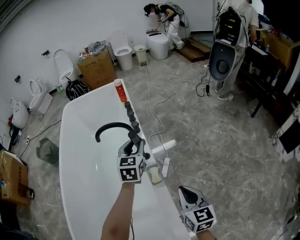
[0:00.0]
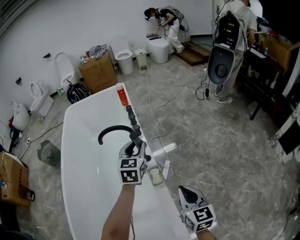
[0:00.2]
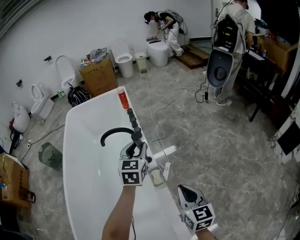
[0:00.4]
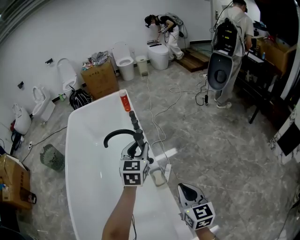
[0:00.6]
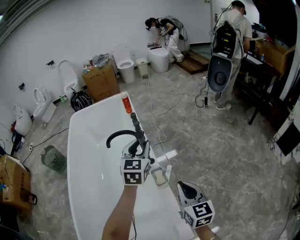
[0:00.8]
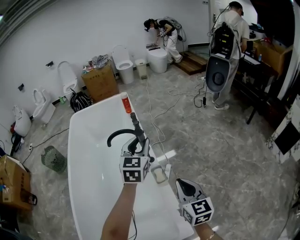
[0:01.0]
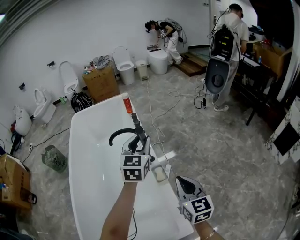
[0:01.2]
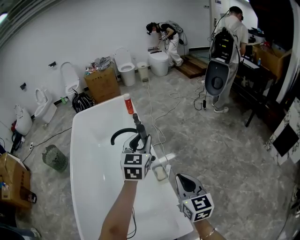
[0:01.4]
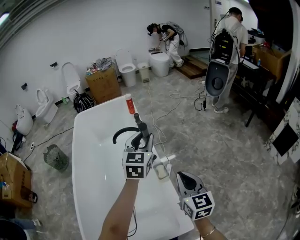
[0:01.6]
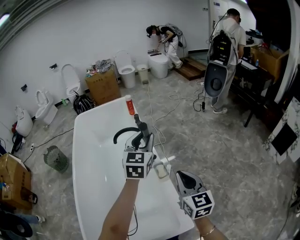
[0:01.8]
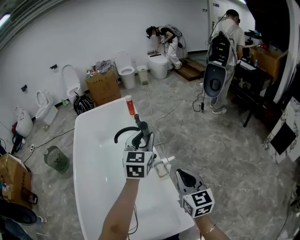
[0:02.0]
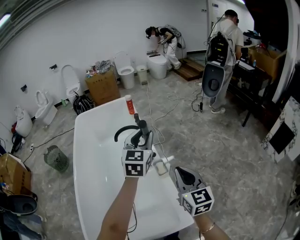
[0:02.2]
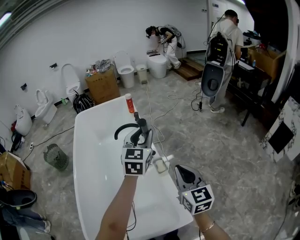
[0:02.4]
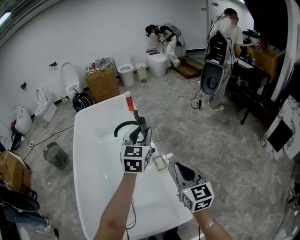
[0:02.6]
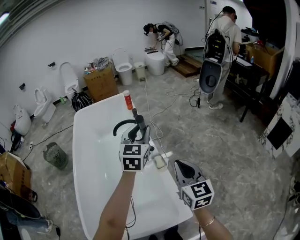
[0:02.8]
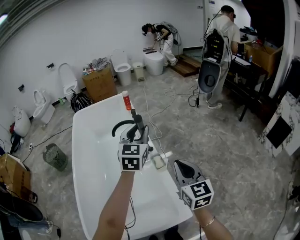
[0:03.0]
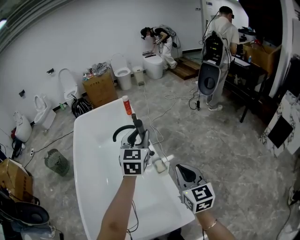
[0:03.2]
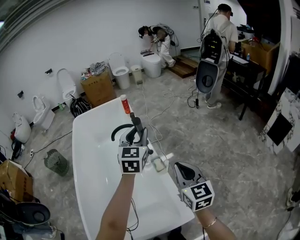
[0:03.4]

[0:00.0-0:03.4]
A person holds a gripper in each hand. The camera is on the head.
0.0 to 1.6 s: The grippers both shift upward and backward by some 25 cm.
1.6 to 3.4 s: The two grippers go some 10 cm backward and upward.

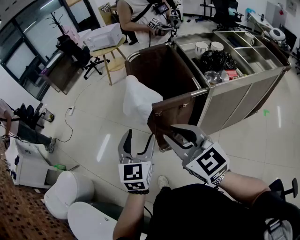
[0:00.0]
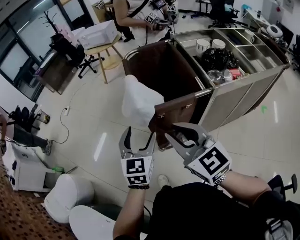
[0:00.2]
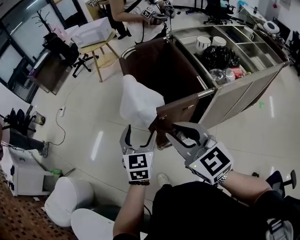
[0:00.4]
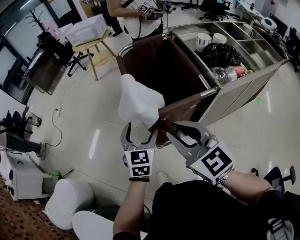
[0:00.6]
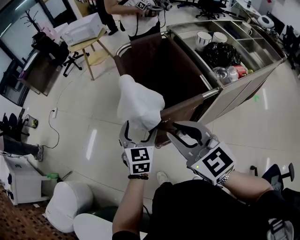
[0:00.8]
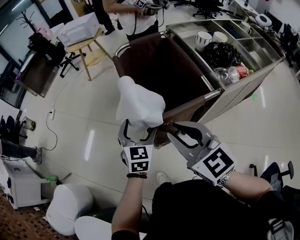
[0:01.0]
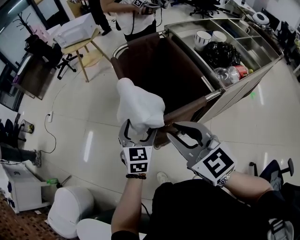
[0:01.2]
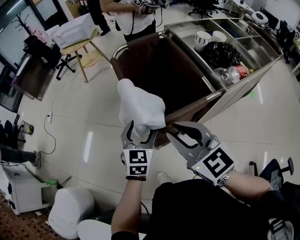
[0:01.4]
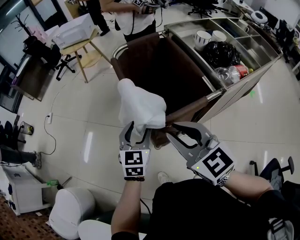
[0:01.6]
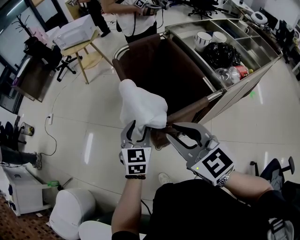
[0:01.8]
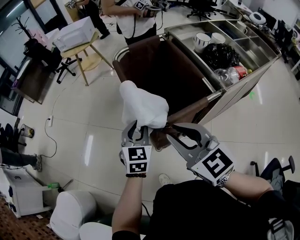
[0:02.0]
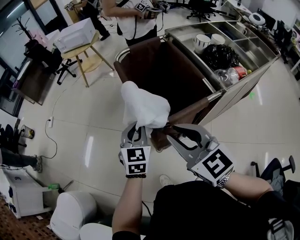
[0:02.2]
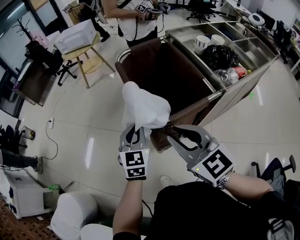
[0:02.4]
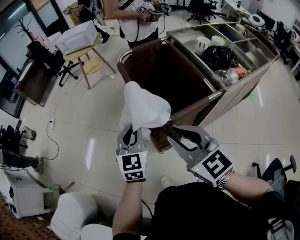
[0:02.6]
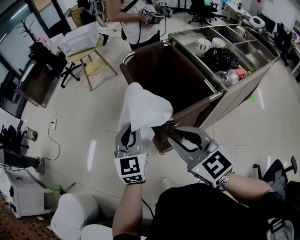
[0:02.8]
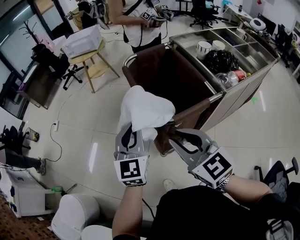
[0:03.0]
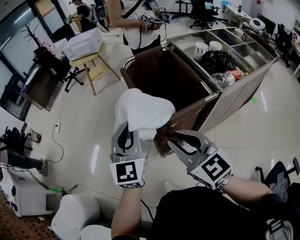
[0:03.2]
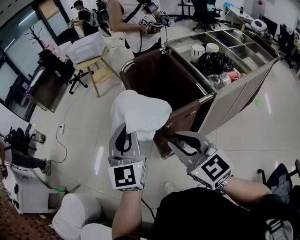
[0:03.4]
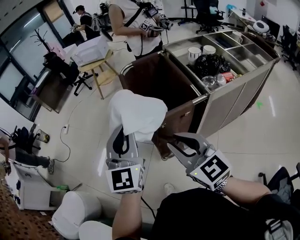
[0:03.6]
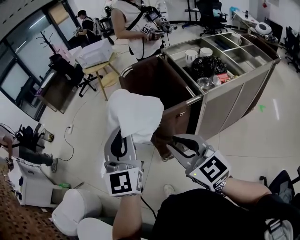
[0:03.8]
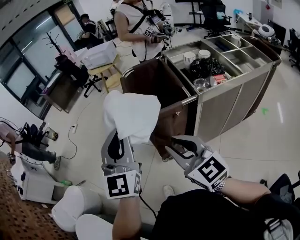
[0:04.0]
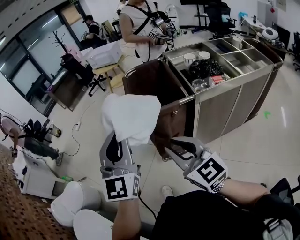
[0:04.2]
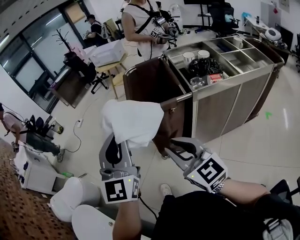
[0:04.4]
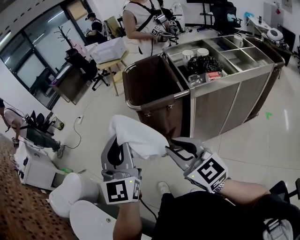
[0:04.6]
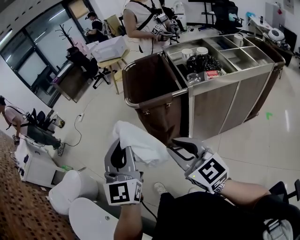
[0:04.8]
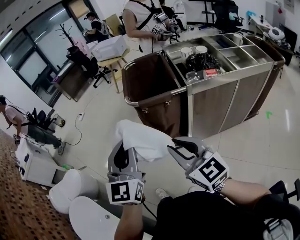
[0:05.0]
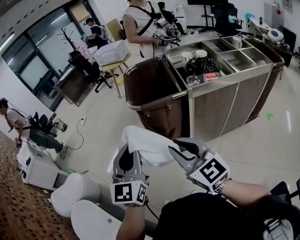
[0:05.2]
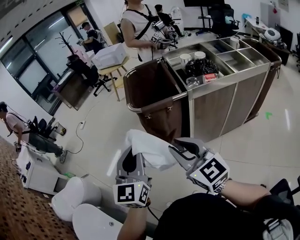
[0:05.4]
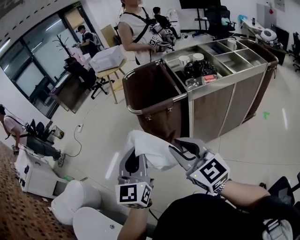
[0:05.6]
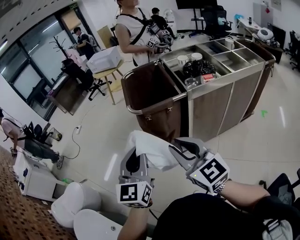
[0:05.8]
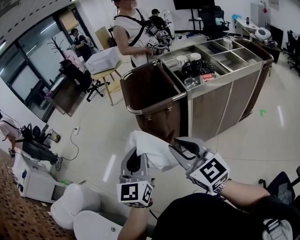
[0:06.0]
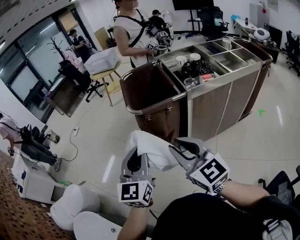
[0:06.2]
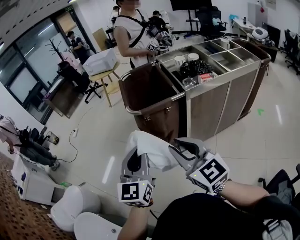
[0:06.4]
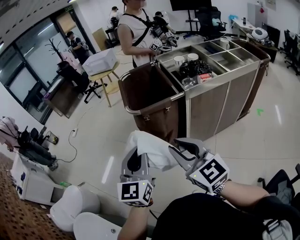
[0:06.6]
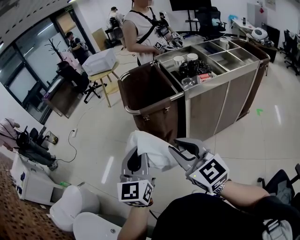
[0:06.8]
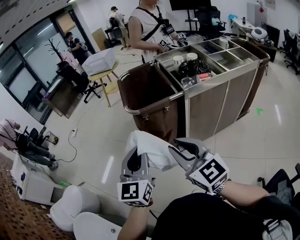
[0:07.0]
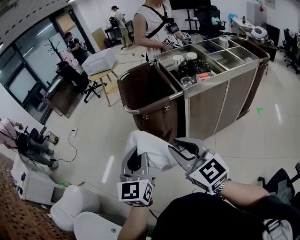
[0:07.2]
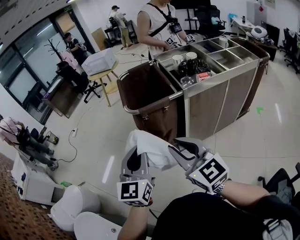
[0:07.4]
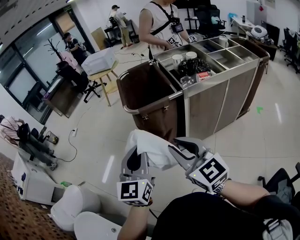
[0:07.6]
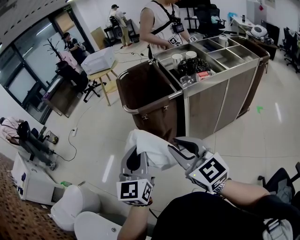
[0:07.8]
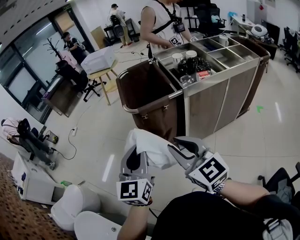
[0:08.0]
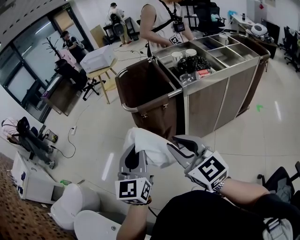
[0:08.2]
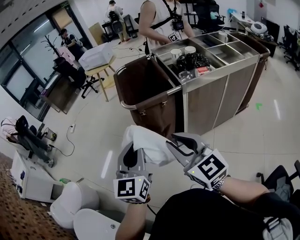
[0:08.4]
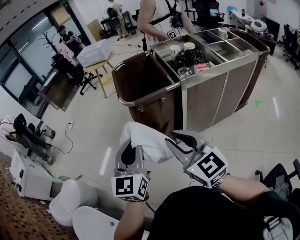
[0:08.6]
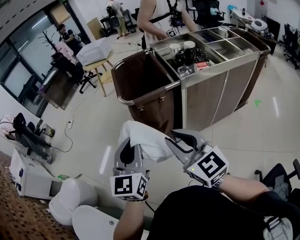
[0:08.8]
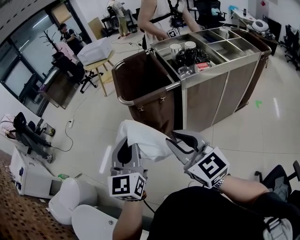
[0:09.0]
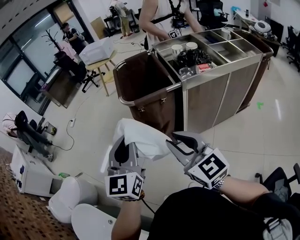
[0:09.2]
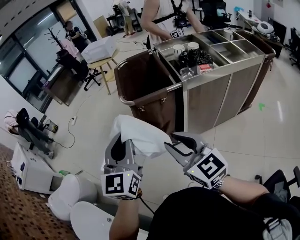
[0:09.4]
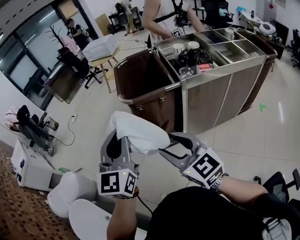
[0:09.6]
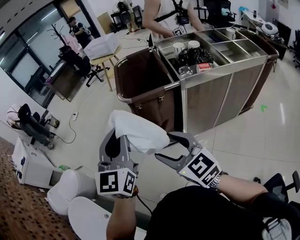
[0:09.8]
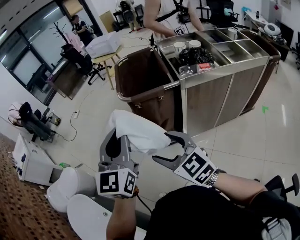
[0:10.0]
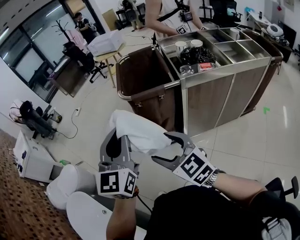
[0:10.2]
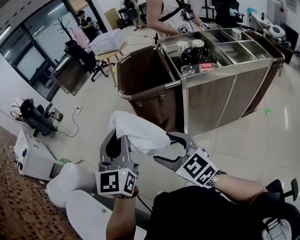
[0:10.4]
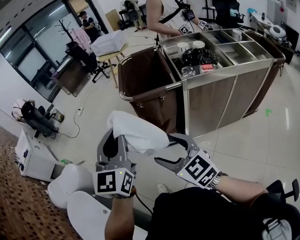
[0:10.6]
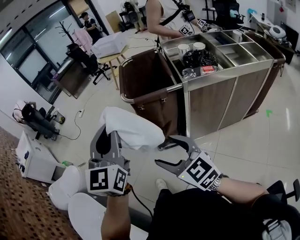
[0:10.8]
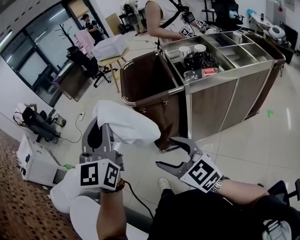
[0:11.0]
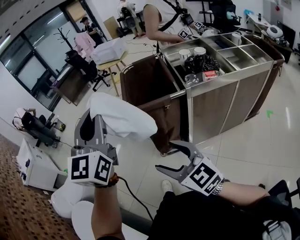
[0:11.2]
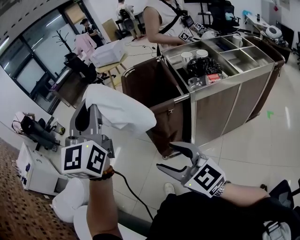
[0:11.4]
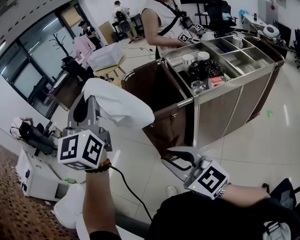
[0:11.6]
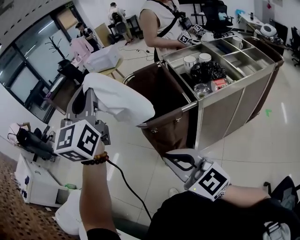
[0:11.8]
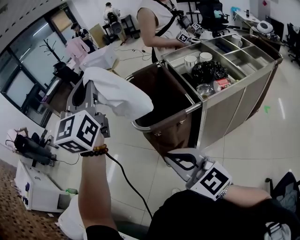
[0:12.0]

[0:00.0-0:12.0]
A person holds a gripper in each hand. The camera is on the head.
0.0 to 1.6 s: The two grippers go approximately 20 cm forward and to the left.
1.6 to 3.0 s: The right gripper ends up approximately 5 cm from where it was, while the left gripper shifts some 15 cm upward, and closes up.
3.0 to 4.4 s: Both grippers move backward and to the right, about 30 cm. The left gripper changes its angle by about 20 degrees.
4.4 to 6.0 s: The left gripper heads downward, covering some 10 cm.
6.0 to 7.6 s: Both grippers stay about where they are.
7.6 to 9.0 s: The grippers stay close to where they were, moving slightly.
9.0 to 10.4 s: The right gripper goes roughly 10 cm downward, turns by roughly 20 degrees, and opens up.
10.4 to 12.0 s: The right gripper travels upward, forward and to the left by about 15 cm, rotates about 20 degrees, and closes up. Meanwhile the left gripper is displaced forward and upward by roughly 30 cm.

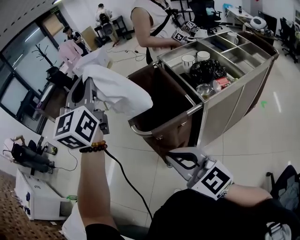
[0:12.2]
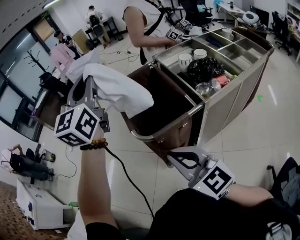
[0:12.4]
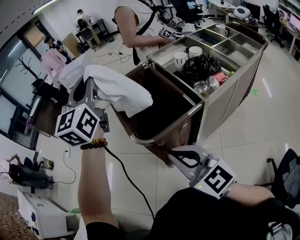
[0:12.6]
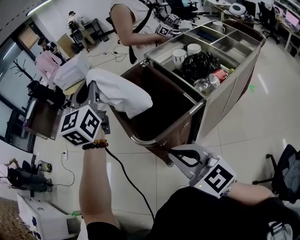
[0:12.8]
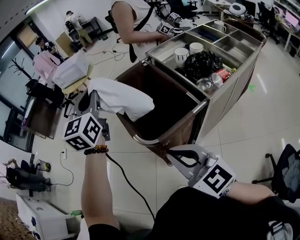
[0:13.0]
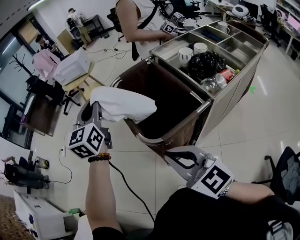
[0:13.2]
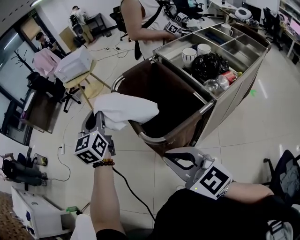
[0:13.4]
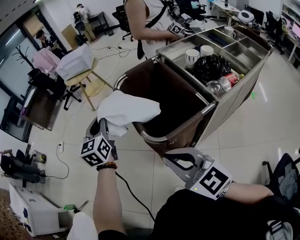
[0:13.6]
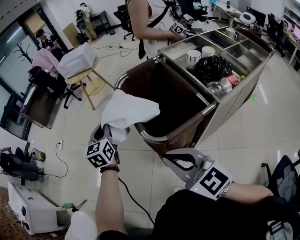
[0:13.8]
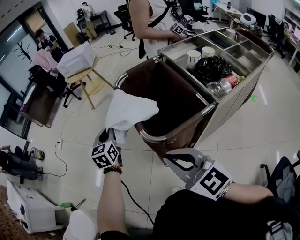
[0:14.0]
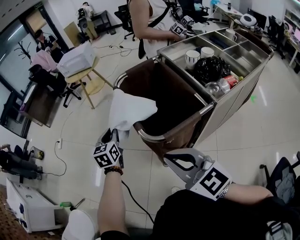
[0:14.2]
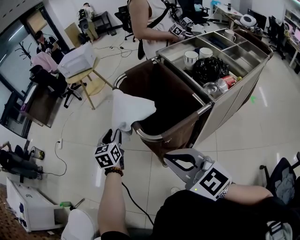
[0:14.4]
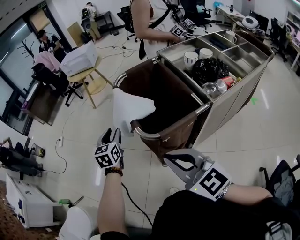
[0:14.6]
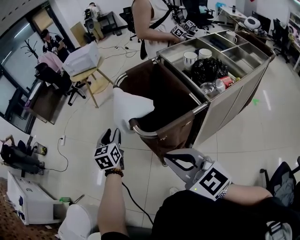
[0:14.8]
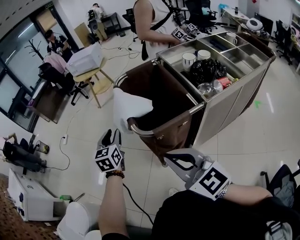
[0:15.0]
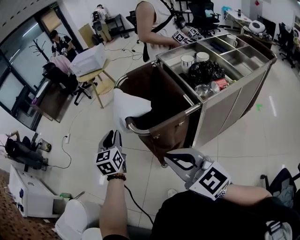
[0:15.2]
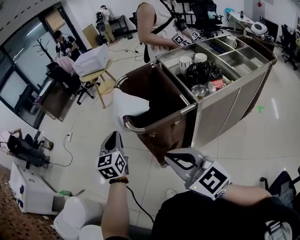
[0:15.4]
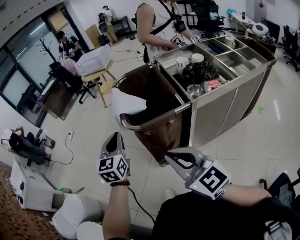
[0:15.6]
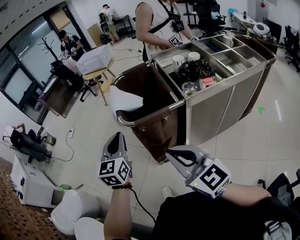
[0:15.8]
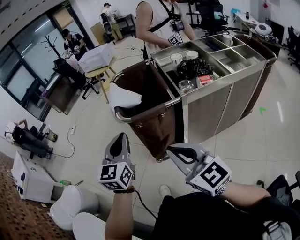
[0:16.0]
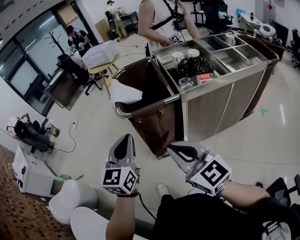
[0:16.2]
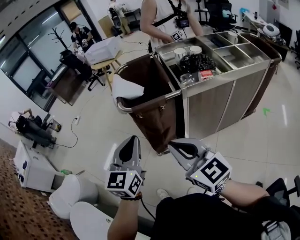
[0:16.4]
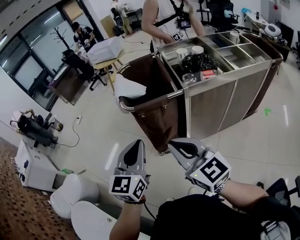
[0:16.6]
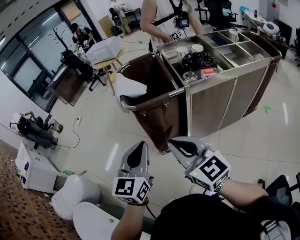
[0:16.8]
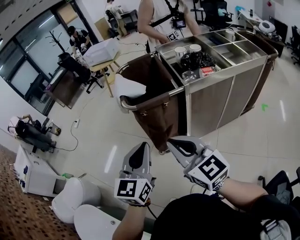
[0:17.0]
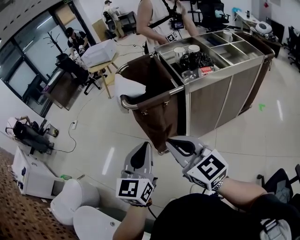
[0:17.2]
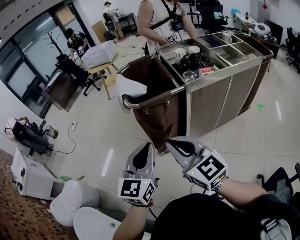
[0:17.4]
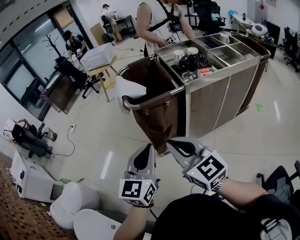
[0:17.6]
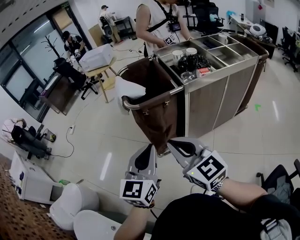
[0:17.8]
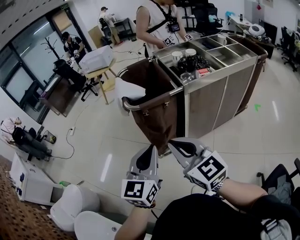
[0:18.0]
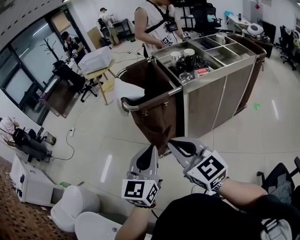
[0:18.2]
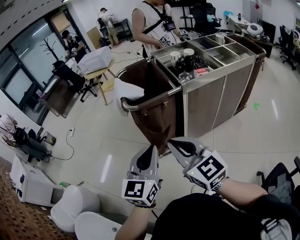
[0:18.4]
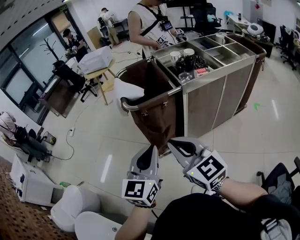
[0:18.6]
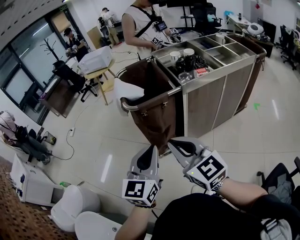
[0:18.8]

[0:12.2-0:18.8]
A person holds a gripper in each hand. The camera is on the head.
12.2 to 13.8 s: The left gripper heads downward, forward and to the left, covering approximately 40 cm, and changes its angle by about 30 degrees, while the right gripper heads to the left and forward, covering about 15 cm.
13.8 to 15.4 s: Both grippers travel together backward and to the right, approximately 20 cm.
15.4 to 17.2 s: The left gripper is displaced backward and to the right by approximately 30 cm. The right gripper shifts roughly 10 cm backward.
17.2 to 18.8 s: The grippers make only small movements.

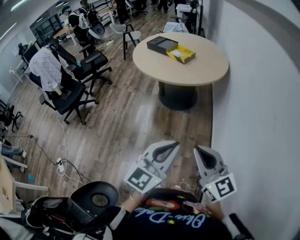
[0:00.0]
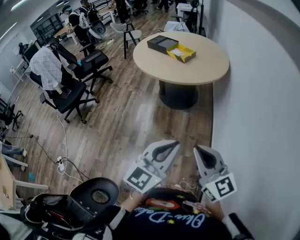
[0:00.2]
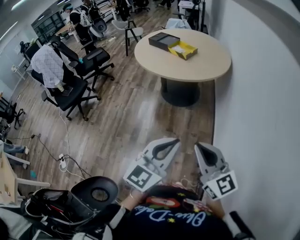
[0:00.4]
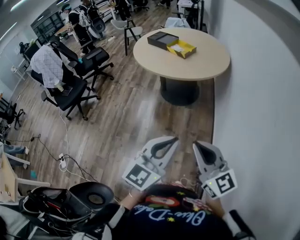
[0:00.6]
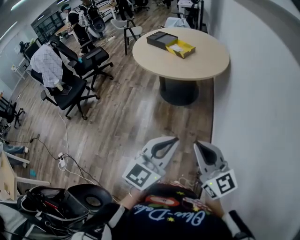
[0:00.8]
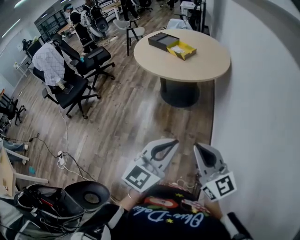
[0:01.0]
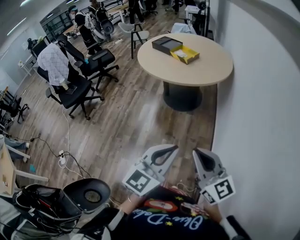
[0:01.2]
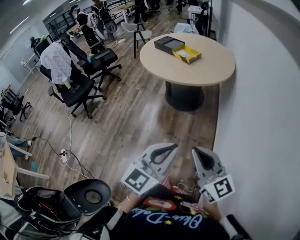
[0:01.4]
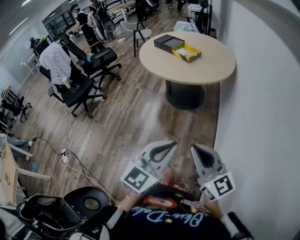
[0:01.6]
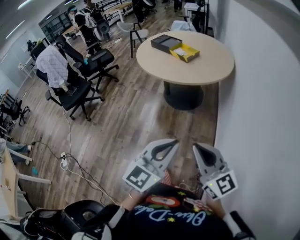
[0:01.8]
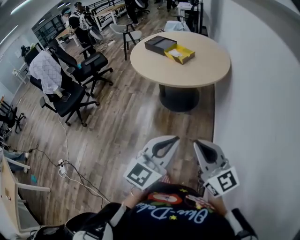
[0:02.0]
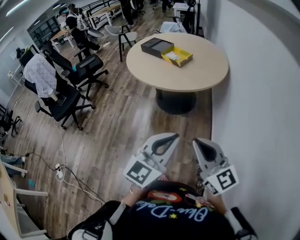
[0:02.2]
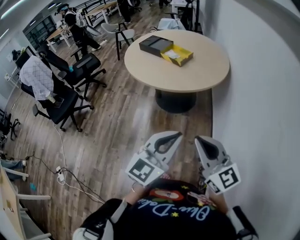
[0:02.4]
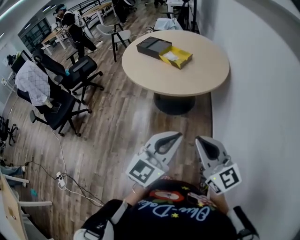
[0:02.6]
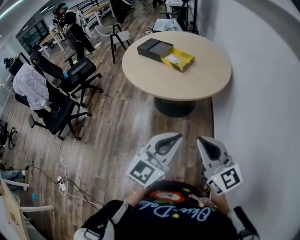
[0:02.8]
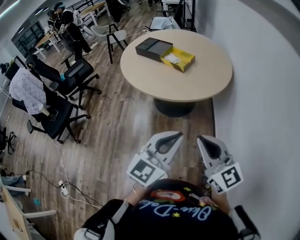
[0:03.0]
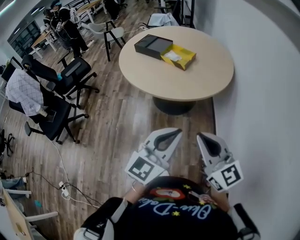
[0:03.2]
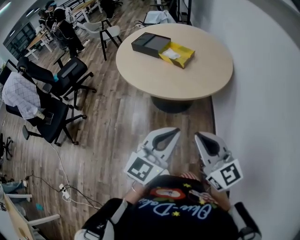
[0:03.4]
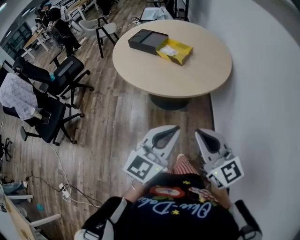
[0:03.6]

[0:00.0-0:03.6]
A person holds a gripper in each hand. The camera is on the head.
0.0 to 1.8 s: The grippers move only a little.
1.8 to 3.6 s: The grippers both shift forward and to the left by some 30 cm.
